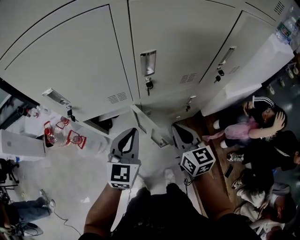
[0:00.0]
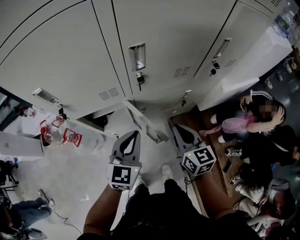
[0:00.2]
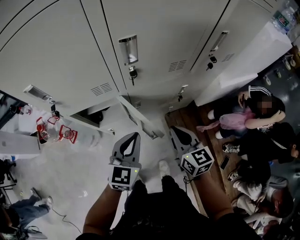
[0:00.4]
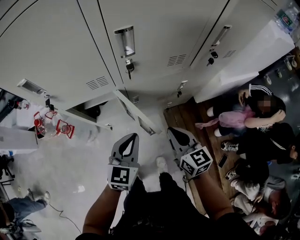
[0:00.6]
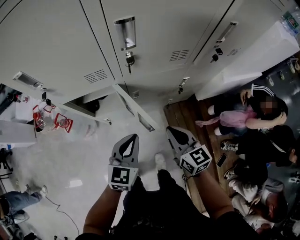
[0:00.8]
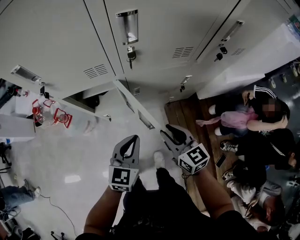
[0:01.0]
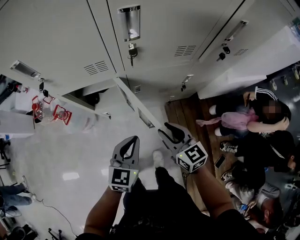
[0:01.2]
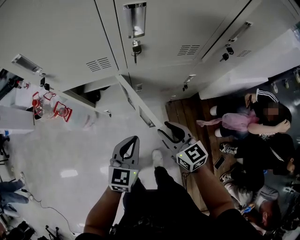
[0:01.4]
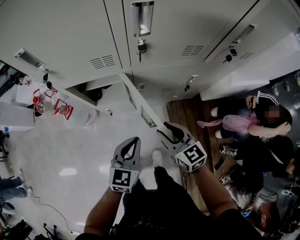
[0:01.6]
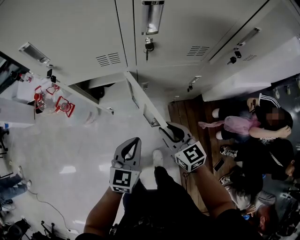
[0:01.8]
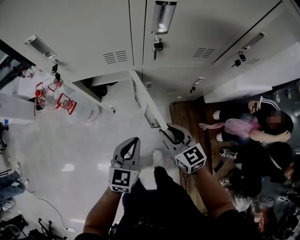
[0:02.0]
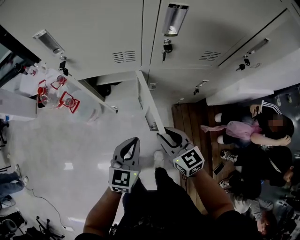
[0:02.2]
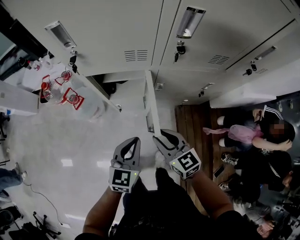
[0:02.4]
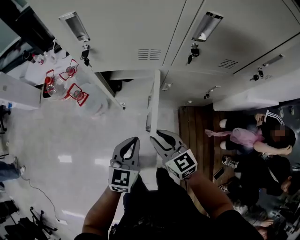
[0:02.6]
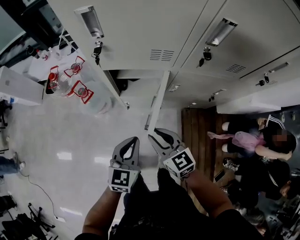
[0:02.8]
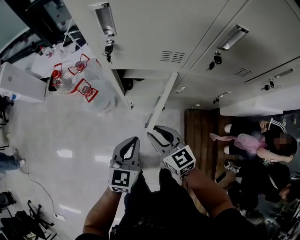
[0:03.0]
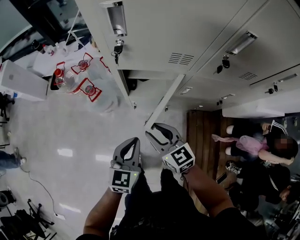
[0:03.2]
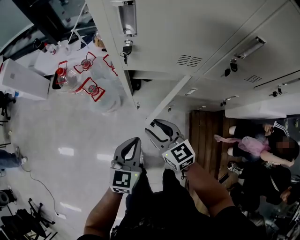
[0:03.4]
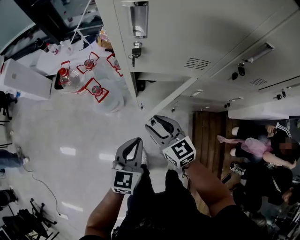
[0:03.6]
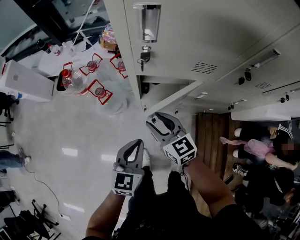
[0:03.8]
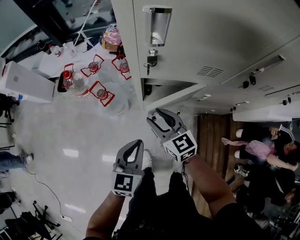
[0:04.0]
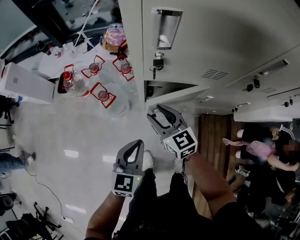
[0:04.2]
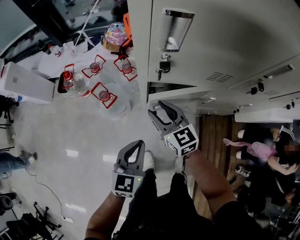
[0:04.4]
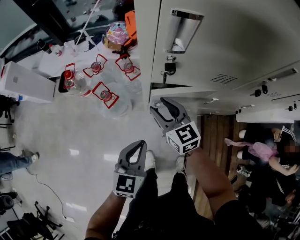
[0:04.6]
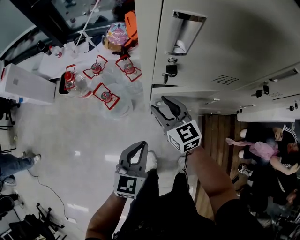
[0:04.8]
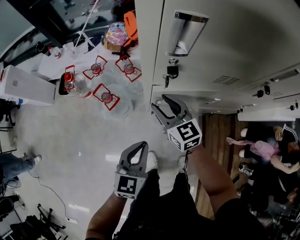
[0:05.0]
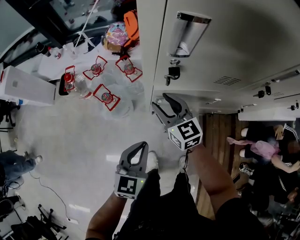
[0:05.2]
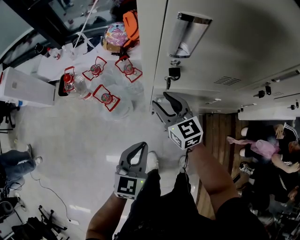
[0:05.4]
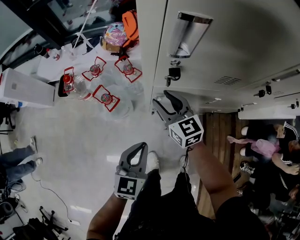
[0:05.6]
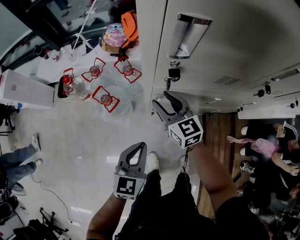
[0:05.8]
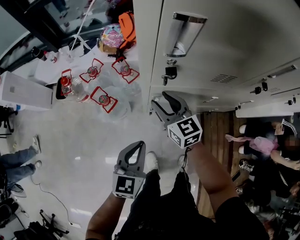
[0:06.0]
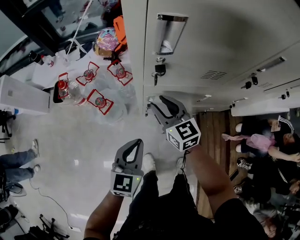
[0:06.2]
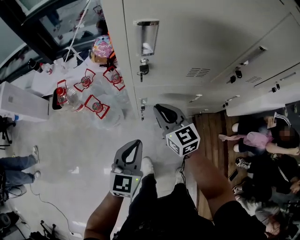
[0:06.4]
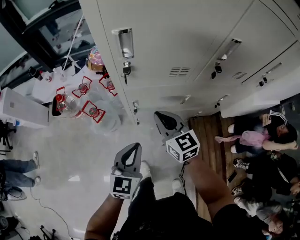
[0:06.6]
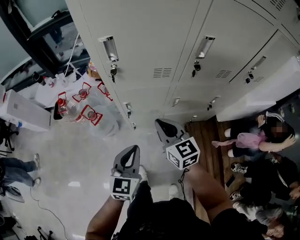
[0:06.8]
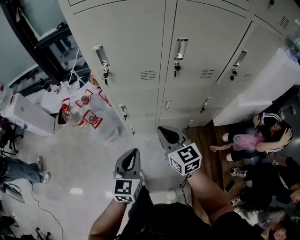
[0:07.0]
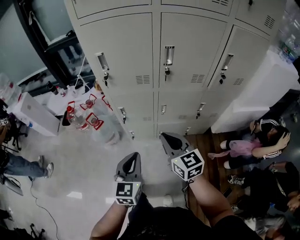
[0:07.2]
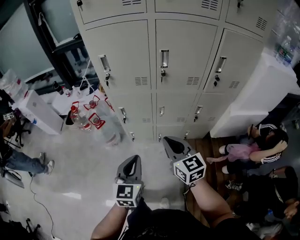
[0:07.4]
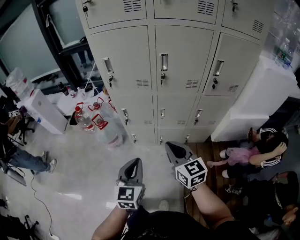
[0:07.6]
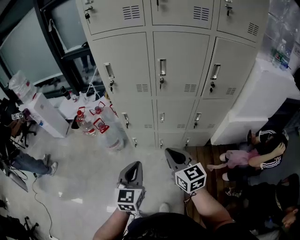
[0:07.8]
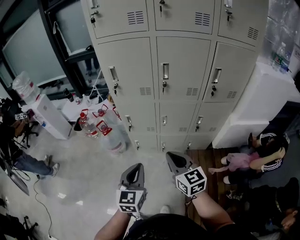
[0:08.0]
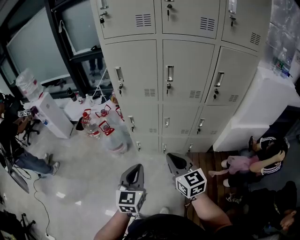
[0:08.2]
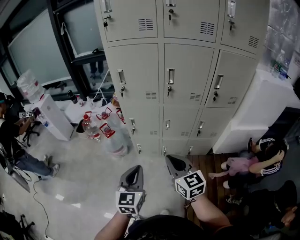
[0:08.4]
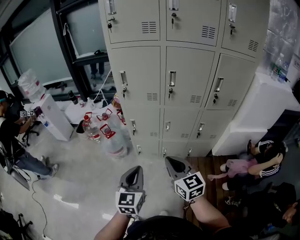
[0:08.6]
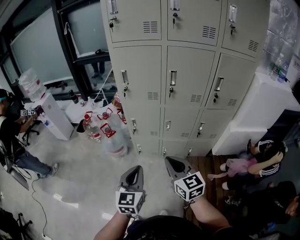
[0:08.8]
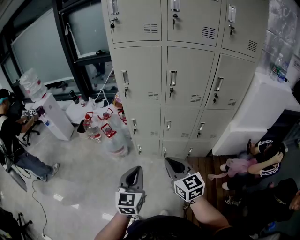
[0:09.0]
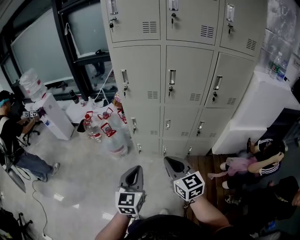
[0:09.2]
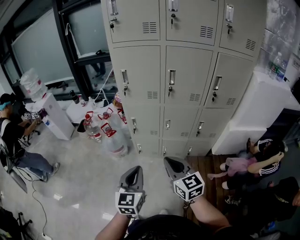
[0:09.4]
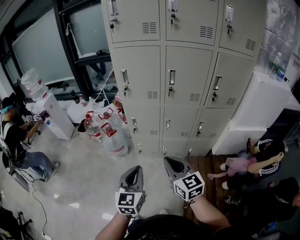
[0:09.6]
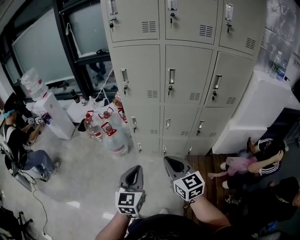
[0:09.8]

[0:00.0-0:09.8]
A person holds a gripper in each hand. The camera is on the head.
0.0 to 1.4 s: The two grippers go some 15 cm downward and backward. The right gripper changes its angle by some 20 degrees, and opens.
1.4 to 2.8 s: The two grippers go about 15 cm to the left.
2.8 to 4.2 s: The left gripper shifts about 15 cm to the left and forward; the right gripper travels forward and to the left by roughly 20 cm.
4.2 to 5.6 s: The right gripper heads forward, covering approximately 10 cm.
5.6 to 7.0 s: The right gripper heads backward, to the right and upward, covering approximately 35 cm, and closes. Meanwhile the left gripper moves to the right, backward and upward, approximately 25 cm.
7.0 to 8.4 s: The left gripper heads backward and upward, covering approximately 20 cm. The right gripper goes roughly 20 cm backward.
8.4 to 9.8 s: The grippers stay close to where they were, moving slightly.

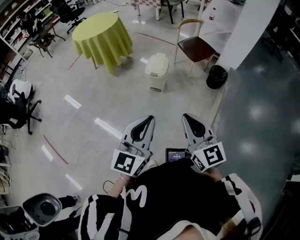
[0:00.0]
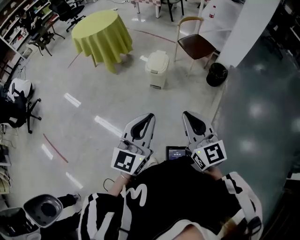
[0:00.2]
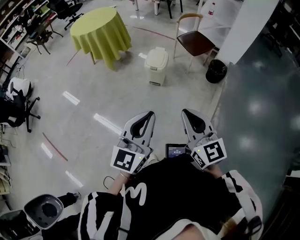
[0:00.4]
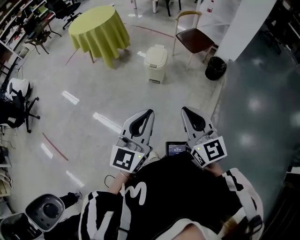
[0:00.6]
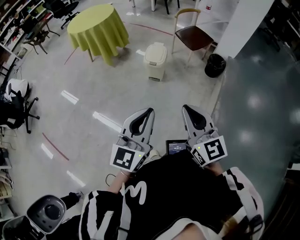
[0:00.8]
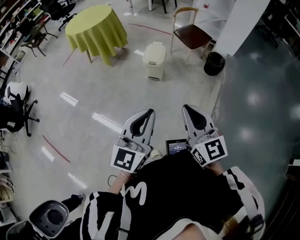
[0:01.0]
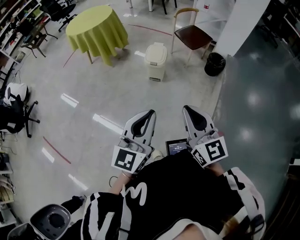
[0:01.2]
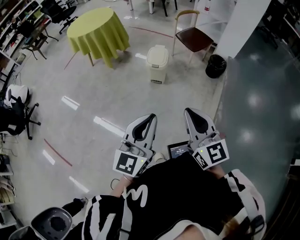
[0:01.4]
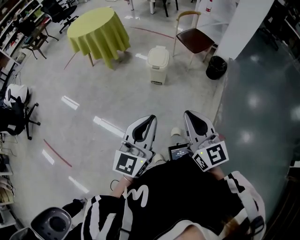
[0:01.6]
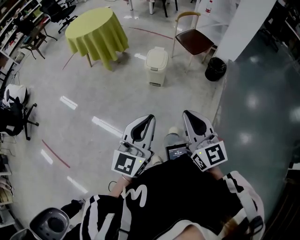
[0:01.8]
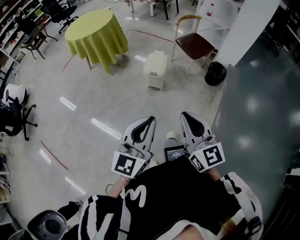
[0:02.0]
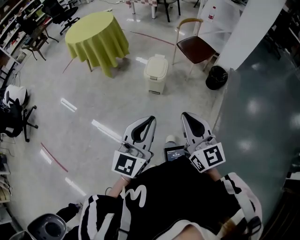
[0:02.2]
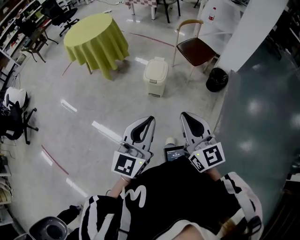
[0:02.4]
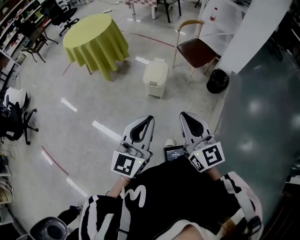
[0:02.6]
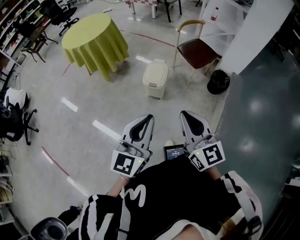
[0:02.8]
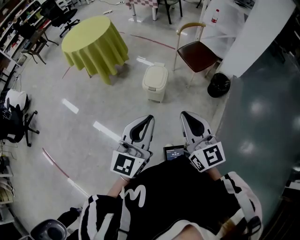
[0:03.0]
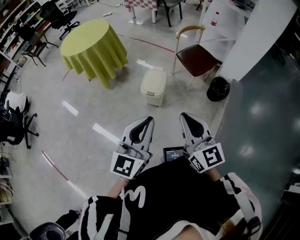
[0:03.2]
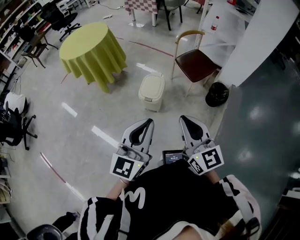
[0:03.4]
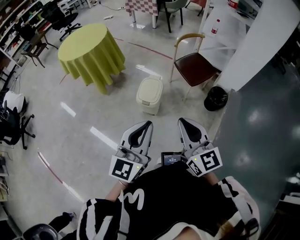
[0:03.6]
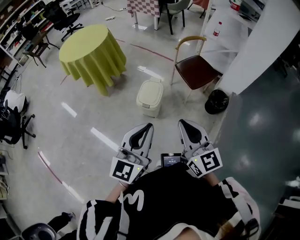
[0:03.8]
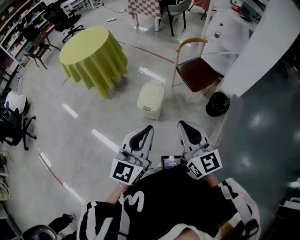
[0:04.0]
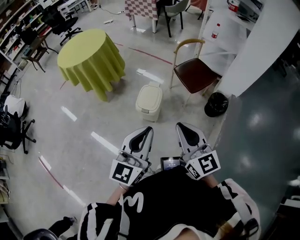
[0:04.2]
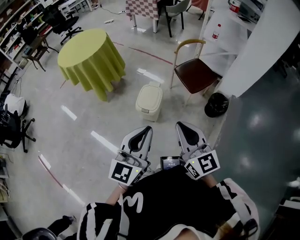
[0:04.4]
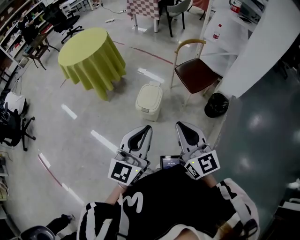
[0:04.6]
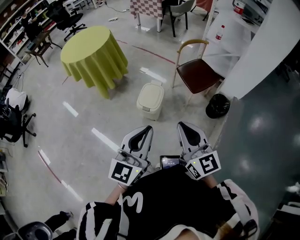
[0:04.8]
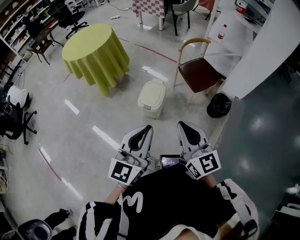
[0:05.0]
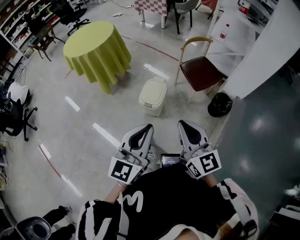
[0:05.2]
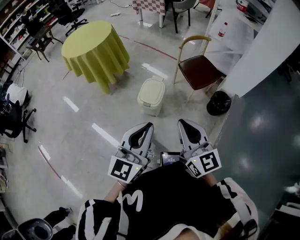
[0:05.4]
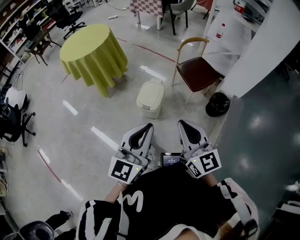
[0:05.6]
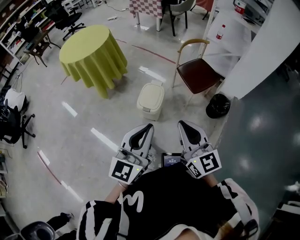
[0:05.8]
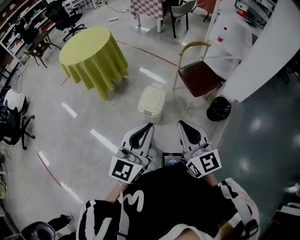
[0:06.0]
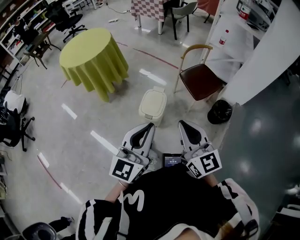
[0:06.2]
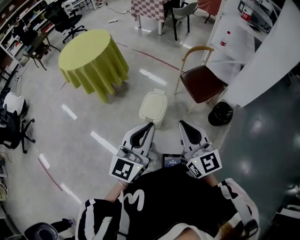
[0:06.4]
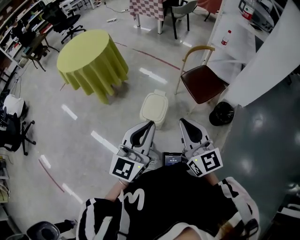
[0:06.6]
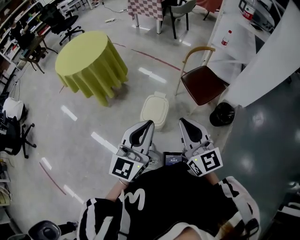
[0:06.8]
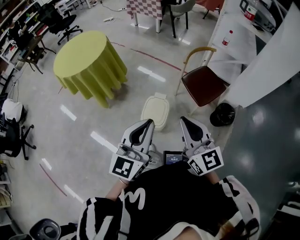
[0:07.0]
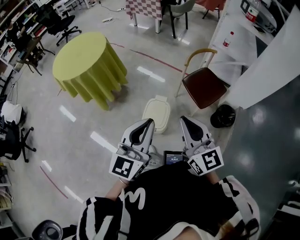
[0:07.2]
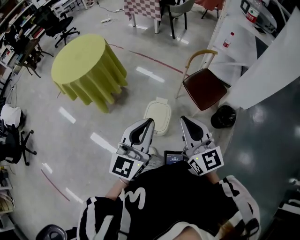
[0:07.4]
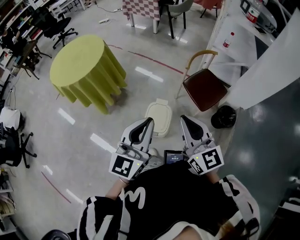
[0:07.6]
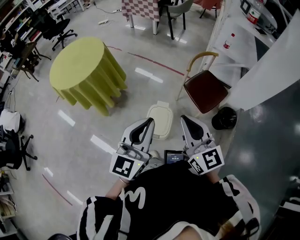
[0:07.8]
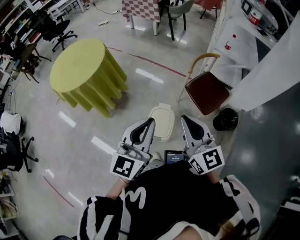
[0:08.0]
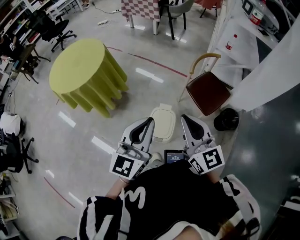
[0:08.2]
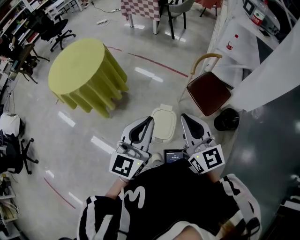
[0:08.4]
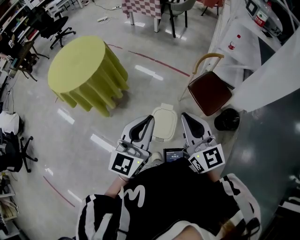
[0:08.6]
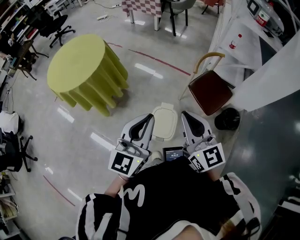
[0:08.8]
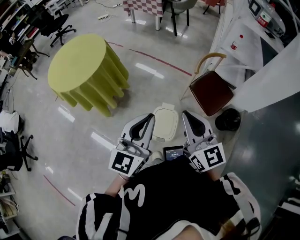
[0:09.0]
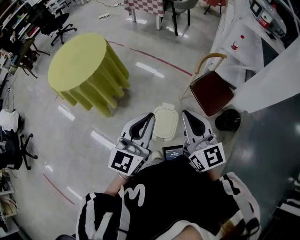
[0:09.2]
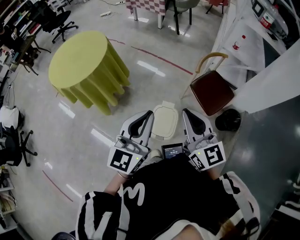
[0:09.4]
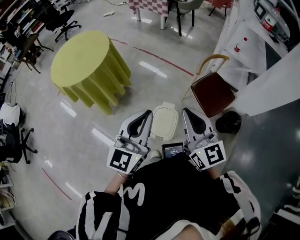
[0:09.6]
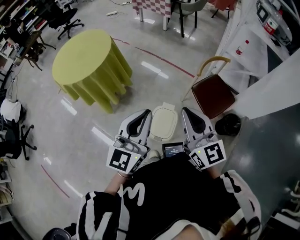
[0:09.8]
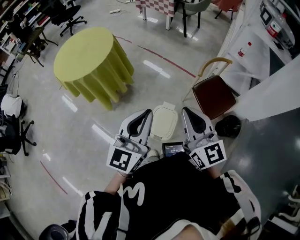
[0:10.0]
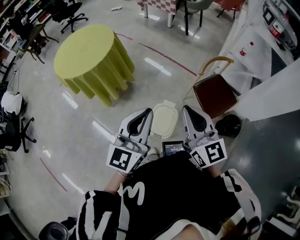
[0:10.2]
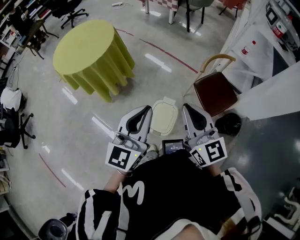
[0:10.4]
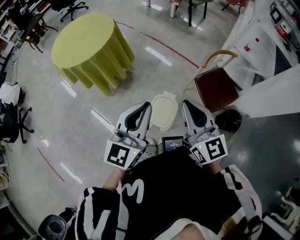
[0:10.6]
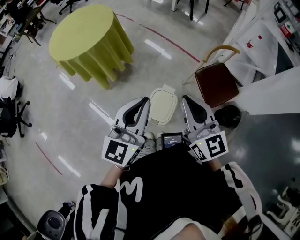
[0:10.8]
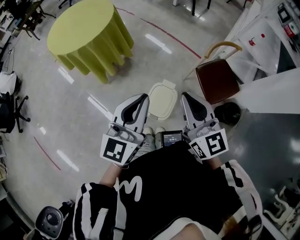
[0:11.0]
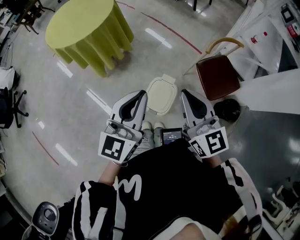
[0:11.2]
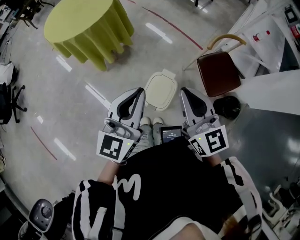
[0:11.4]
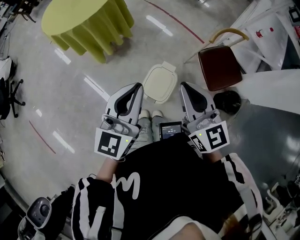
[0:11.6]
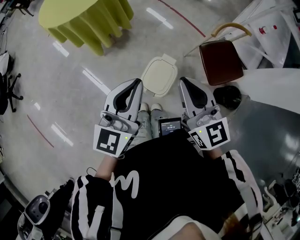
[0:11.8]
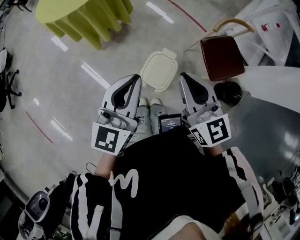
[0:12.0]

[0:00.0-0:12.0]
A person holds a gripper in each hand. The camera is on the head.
0.0 to 1.6 s: Both grippers move to the left, roughly 5 cm.
1.6 to 3.0 s: Both grippers move forward, about 25 cm.
3.0 to 4.4 s: Both grippers travel together forward and to the right, some 15 cm.
4.4 to 6.0 s: The grippers stay close to where they were, moving slightly.
6.0 to 7.6 s: Both grippers move forward, roughly 25 cm.
7.6 to 9.0 s: Both grippers move forward and to the left, approximately 10 cm.
9.0 to 10.4 s: There are only small adjustments of the grippers.
10.4 to 12.0 s: Both grippers move downward, roughly 10 cm.

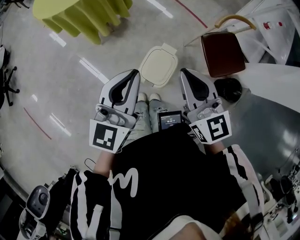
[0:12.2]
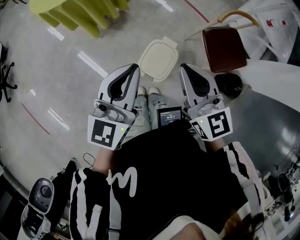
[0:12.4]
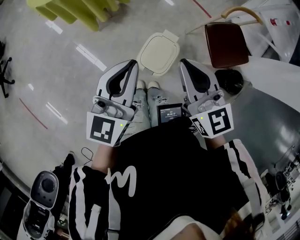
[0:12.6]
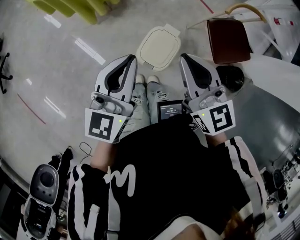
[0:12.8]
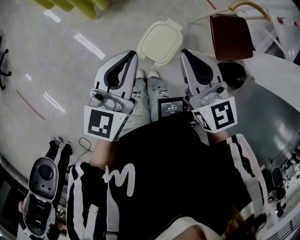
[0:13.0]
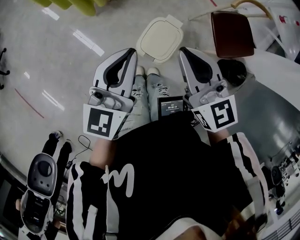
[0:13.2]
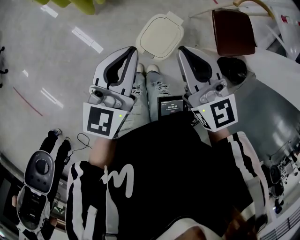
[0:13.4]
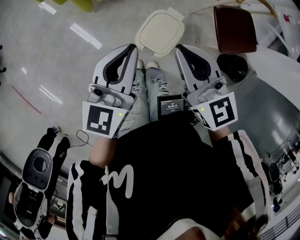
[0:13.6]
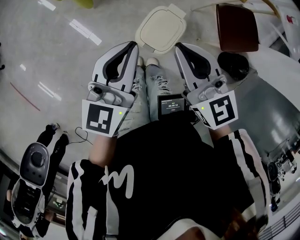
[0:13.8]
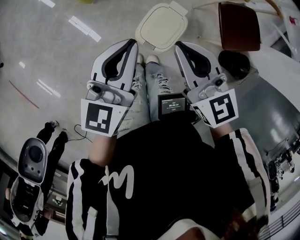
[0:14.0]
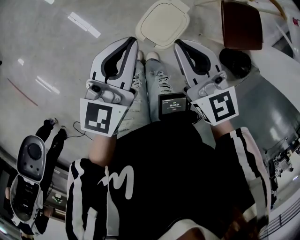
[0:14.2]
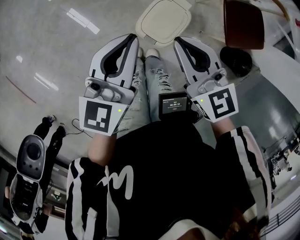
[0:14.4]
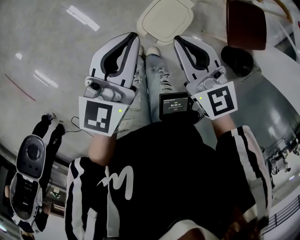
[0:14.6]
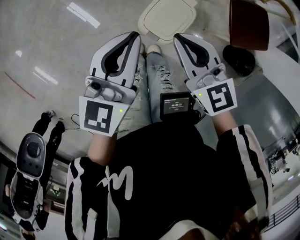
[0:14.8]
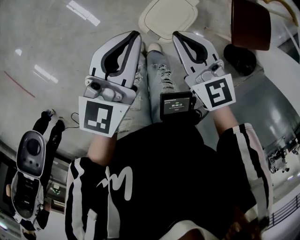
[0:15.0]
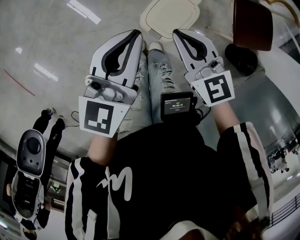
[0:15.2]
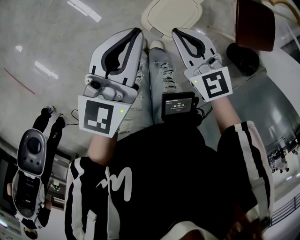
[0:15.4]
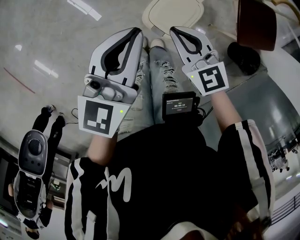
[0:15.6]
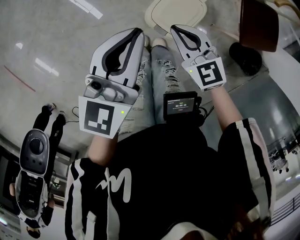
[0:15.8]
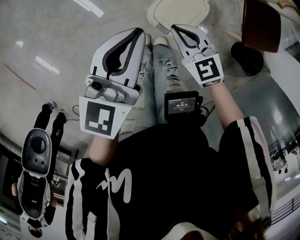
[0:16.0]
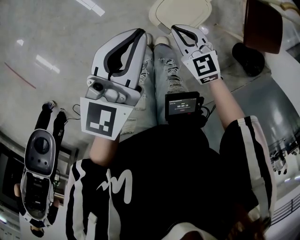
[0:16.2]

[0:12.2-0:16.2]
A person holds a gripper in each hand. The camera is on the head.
12.2 to 13.6 s: Both grippers move downward, approximately 10 cm.
13.6 to 14.8 s: The right gripper is displaced downward by roughly 10 cm.
14.8 to 16.2 s: The left gripper is displaced downward by approximately 5 cm. The right gripper shifts some 20 cm downward, and turns by about 20 degrees.
